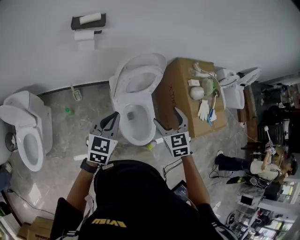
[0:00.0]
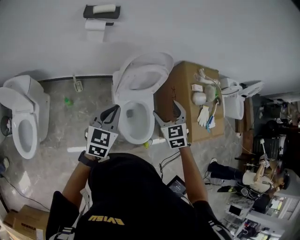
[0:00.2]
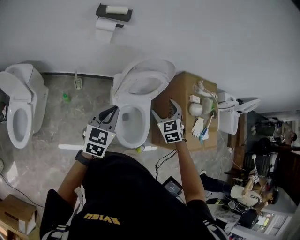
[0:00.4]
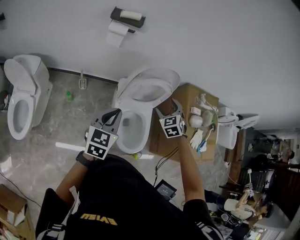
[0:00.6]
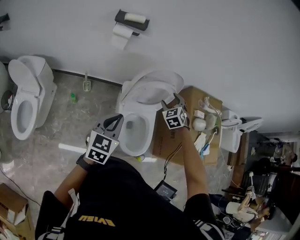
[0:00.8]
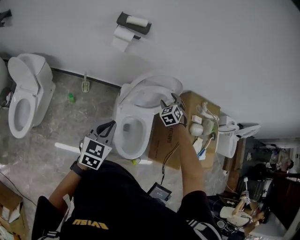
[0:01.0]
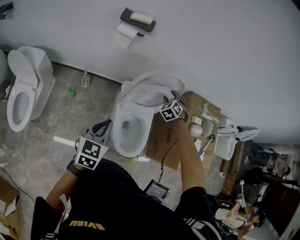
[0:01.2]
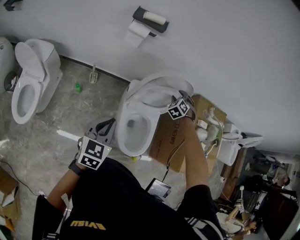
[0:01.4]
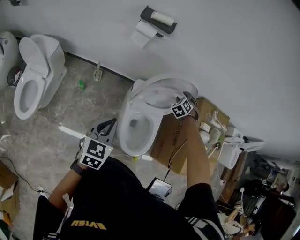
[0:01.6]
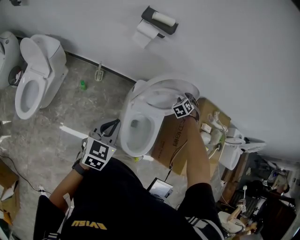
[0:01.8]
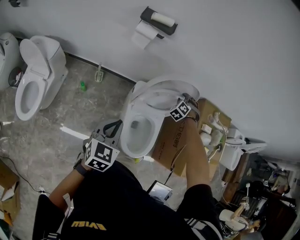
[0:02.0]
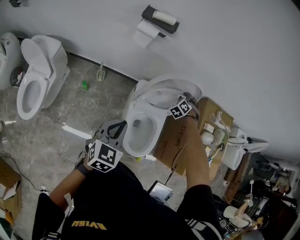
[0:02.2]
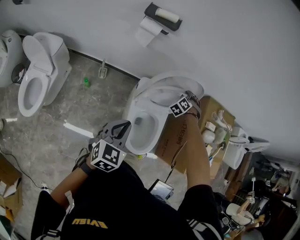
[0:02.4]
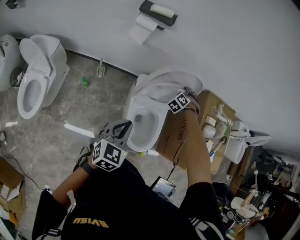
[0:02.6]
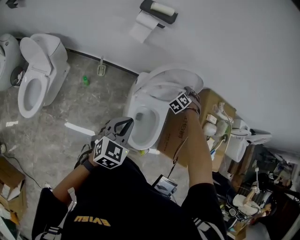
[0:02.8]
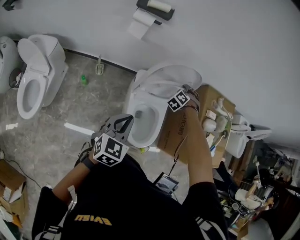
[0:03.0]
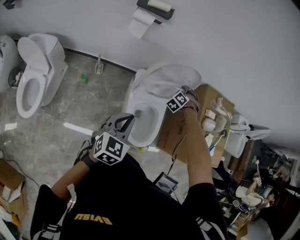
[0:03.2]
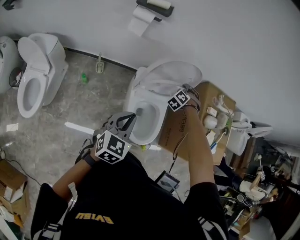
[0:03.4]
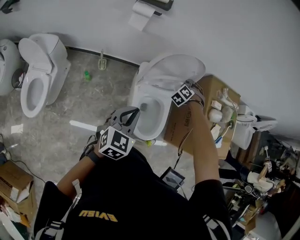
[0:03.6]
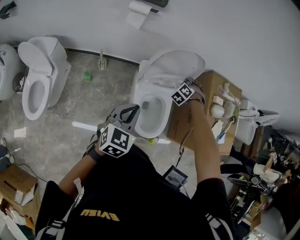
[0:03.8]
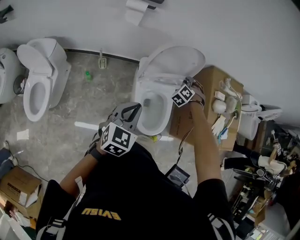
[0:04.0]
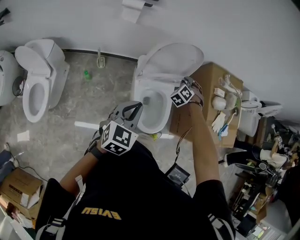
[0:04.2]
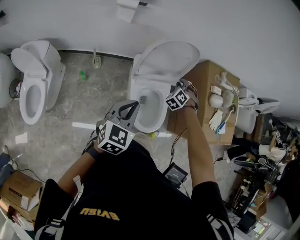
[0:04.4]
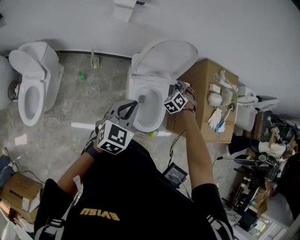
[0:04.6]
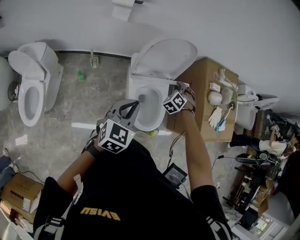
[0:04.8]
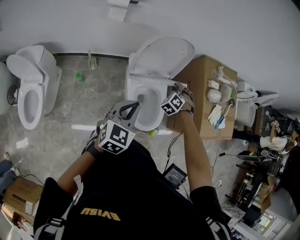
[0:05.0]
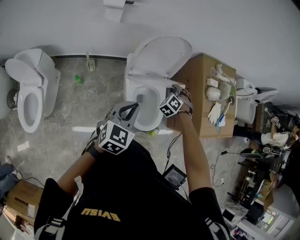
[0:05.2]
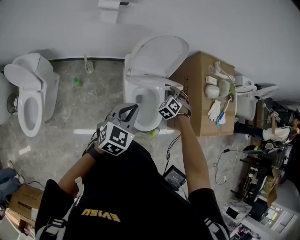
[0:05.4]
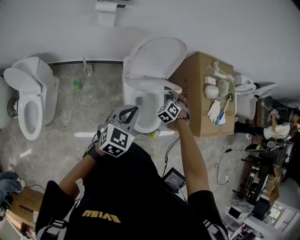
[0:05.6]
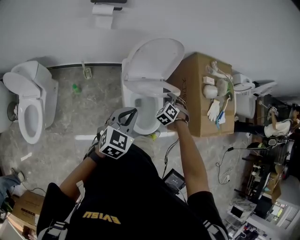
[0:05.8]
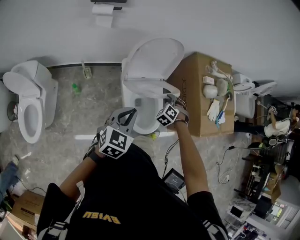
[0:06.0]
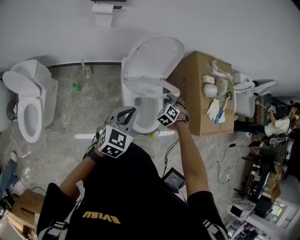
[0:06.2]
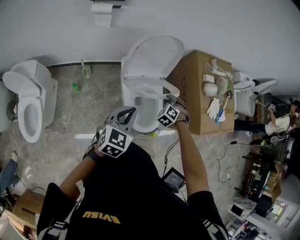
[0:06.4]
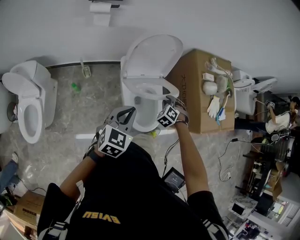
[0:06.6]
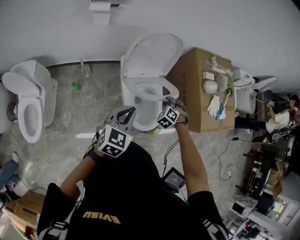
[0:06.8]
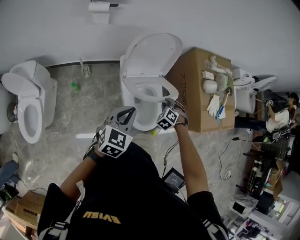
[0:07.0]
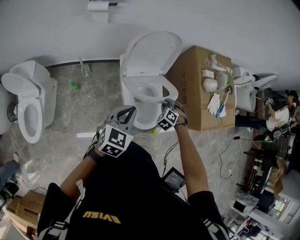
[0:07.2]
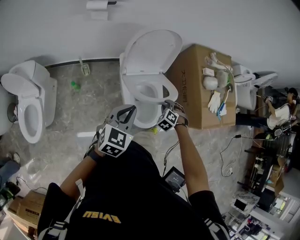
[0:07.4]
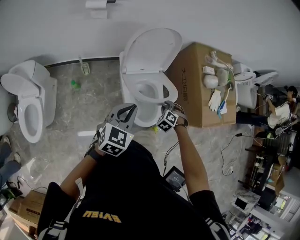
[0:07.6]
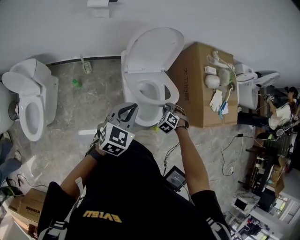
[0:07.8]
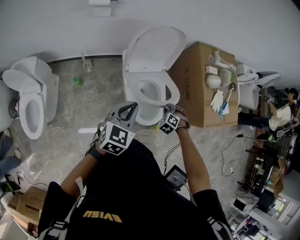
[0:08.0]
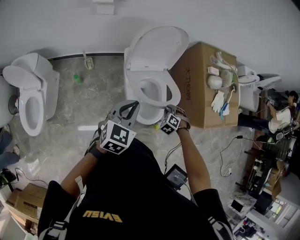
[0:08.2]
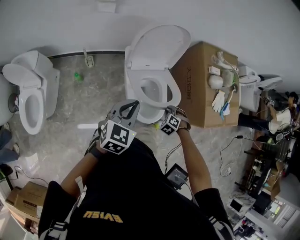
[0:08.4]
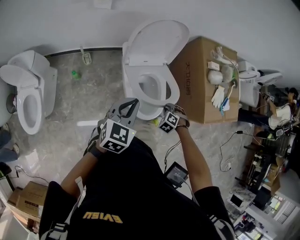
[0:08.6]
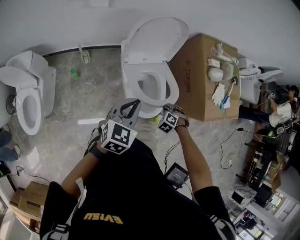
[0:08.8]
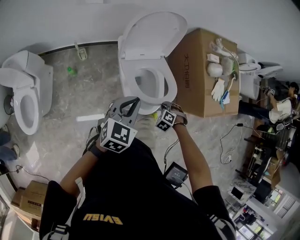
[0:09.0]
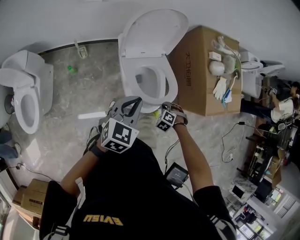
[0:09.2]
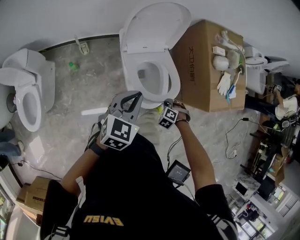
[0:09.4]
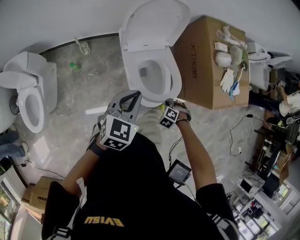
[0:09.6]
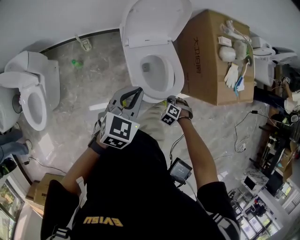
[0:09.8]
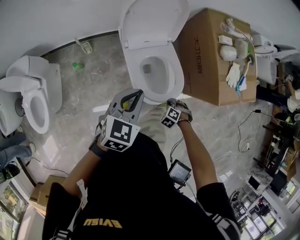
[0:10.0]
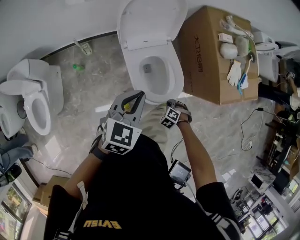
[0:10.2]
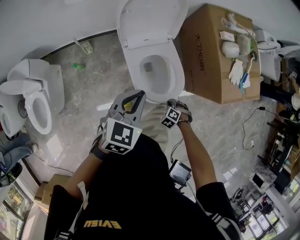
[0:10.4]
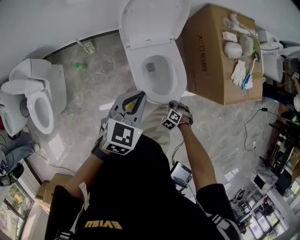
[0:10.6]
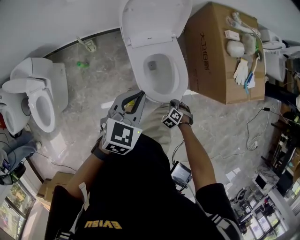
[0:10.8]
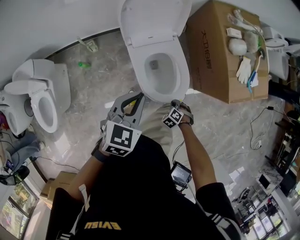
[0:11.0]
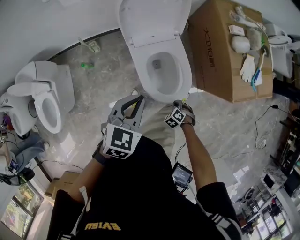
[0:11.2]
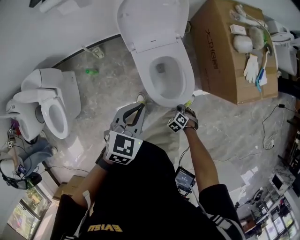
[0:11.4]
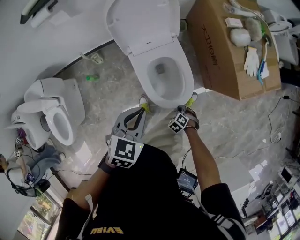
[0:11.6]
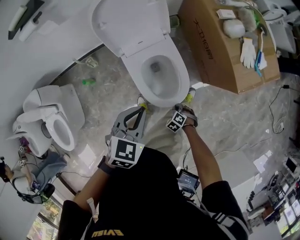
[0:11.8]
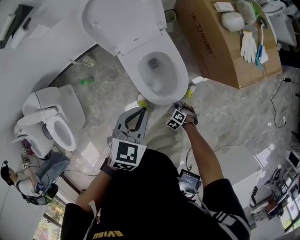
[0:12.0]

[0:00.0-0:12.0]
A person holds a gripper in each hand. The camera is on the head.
0:00.0 to 0:01.6: The right gripper heads forward and downward, covering about 35 cm, rotates around the line of its fingers by roughly 40 degrees, counterclockwise from behind, and closes, while the left gripper heads to the left, covering about 5 cm, and swivels approximately 20 degrees.
0:01.6 to 0:03.0: The left gripper goes approximately 5 cm to the right.
0:03.0 to 0:04.4: The right gripper travels backward and to the right by some 10 cm.
0:04.4 to 0:06.0: The right gripper is displaced backward and to the right by approximately 10 cm.
0:06.0 to 0:07.6: The right gripper travels backward, to the right and downward by some 10 cm.
0:07.6 to 0:09.0: The right gripper changes place by some 10 cm.
0:09.0 to 0:10.4: The right gripper goes about 10 cm downward.
0:10.4 to 0:12.0: The right gripper moves downward, about 10 cm, while the left gripper changes place by roughly 10 cm.

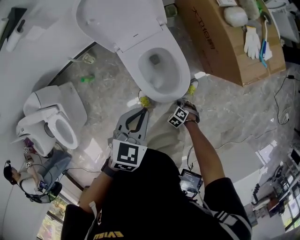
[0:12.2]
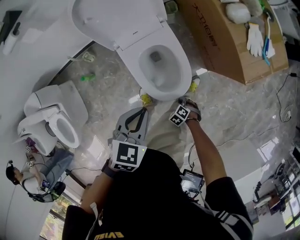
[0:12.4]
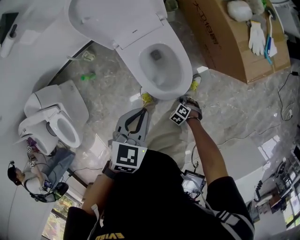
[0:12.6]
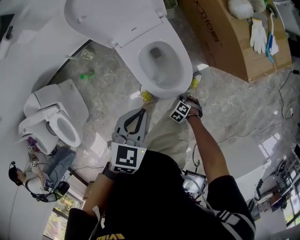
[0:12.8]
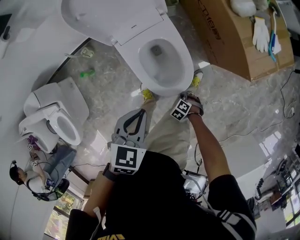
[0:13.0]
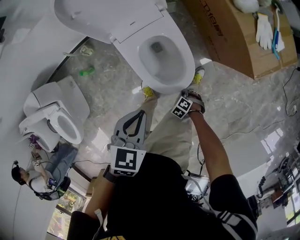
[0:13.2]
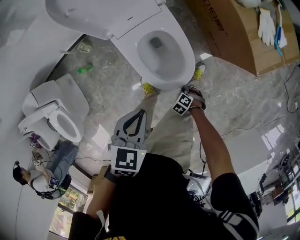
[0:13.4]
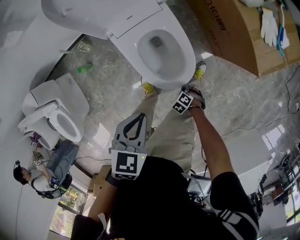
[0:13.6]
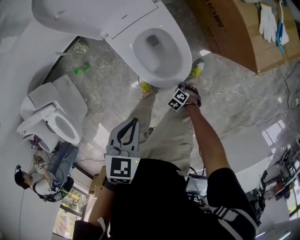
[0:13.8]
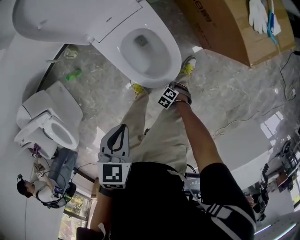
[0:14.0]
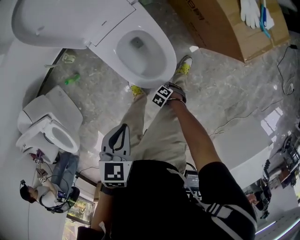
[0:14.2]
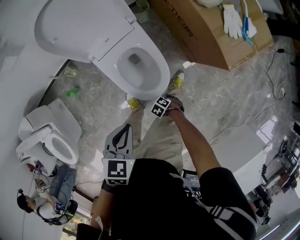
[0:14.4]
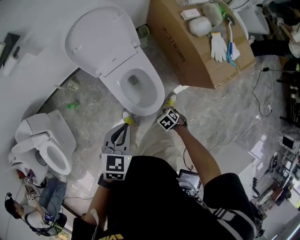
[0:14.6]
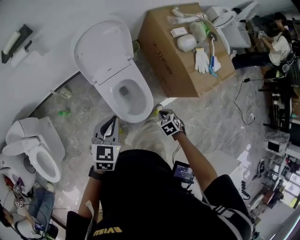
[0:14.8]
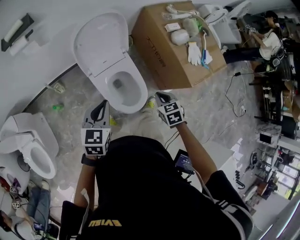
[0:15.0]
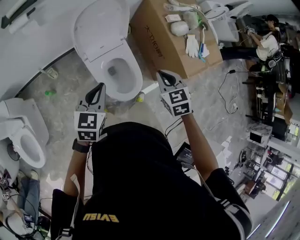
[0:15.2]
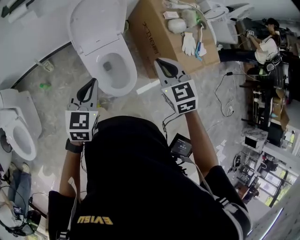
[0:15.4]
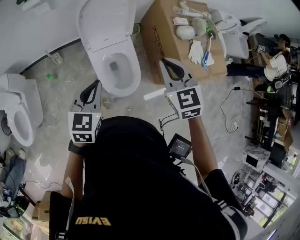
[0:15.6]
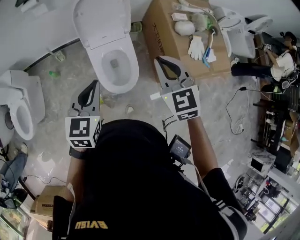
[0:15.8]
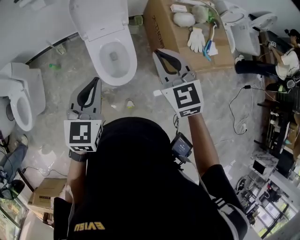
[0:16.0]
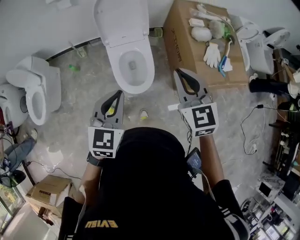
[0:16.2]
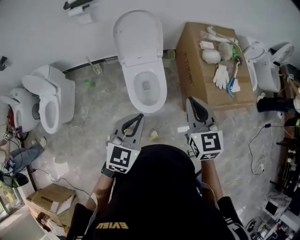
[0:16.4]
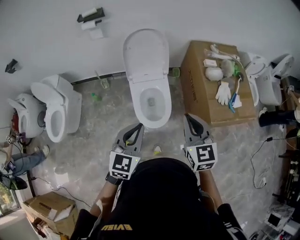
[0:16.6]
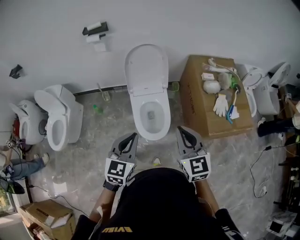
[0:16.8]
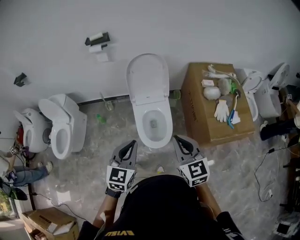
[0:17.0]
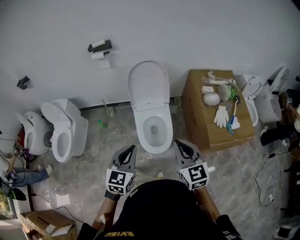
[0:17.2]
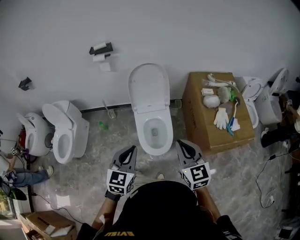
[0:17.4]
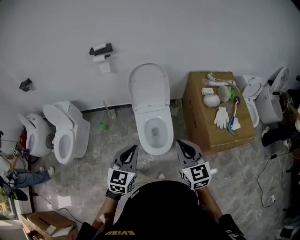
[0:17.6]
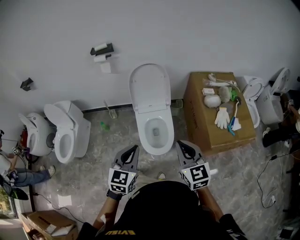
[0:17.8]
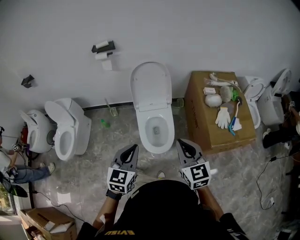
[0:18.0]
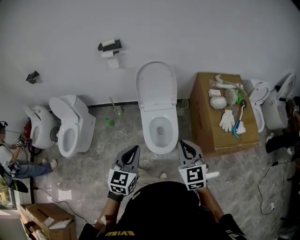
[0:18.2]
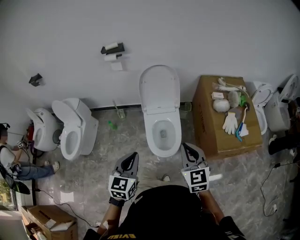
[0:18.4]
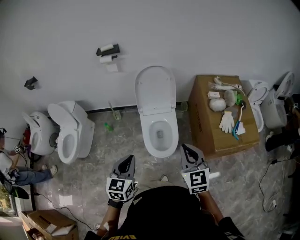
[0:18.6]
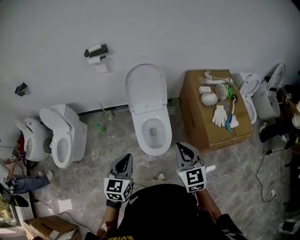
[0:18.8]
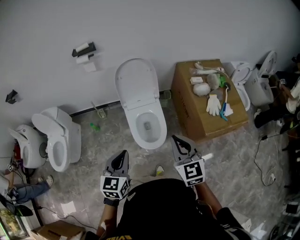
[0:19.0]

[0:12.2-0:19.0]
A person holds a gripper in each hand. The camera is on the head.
0:12.2 to 0:13.6: The two grippers go about 5 cm downward.
0:13.6 to 0:15.0: The right gripper moves upward, roughly 40 cm, and tips its fingers upward by about 30 degrees; the left gripper shifts about 15 cm upward, and changes its angle by roughly 30 degrees.
0:15.0 to 0:16.2: The right gripper moves upward, some 25 cm, and tilts its fingers some 40 degrees upward; the left gripper heads backward, to the right and upward, covering approximately 25 cm.
0:16.2 to 0:17.6: The right gripper moves backward, roughly 5 cm; the left gripper ends up roughly 5 cm from where it was.
0:17.6 to 0:19.0: The grippers stay close to where they were, moving slightly.

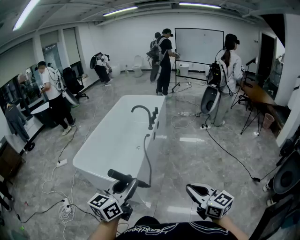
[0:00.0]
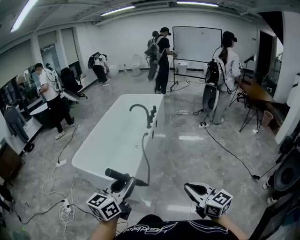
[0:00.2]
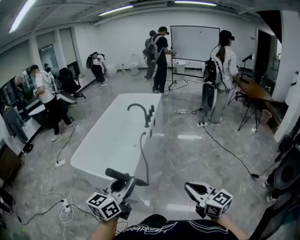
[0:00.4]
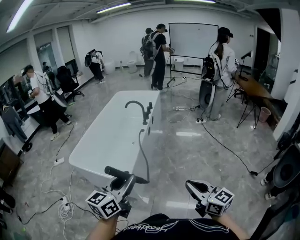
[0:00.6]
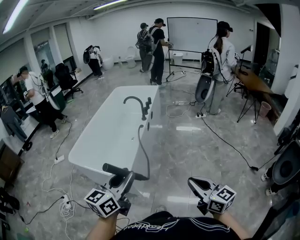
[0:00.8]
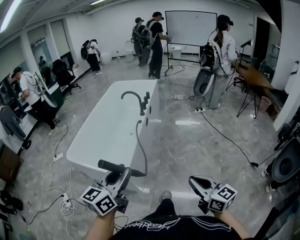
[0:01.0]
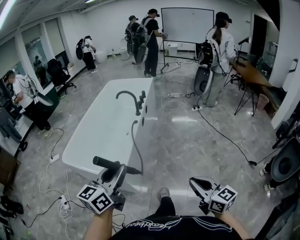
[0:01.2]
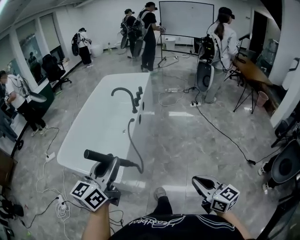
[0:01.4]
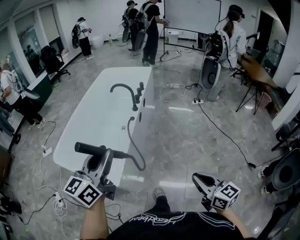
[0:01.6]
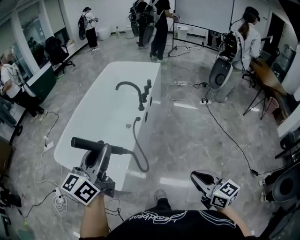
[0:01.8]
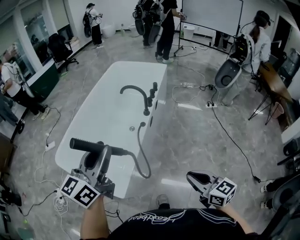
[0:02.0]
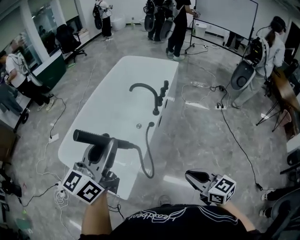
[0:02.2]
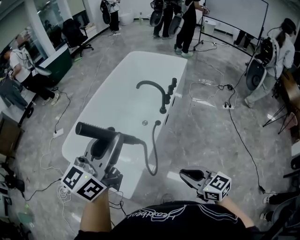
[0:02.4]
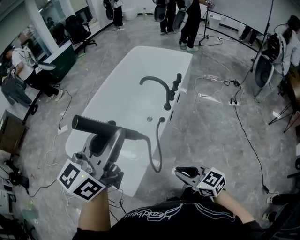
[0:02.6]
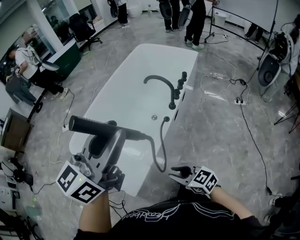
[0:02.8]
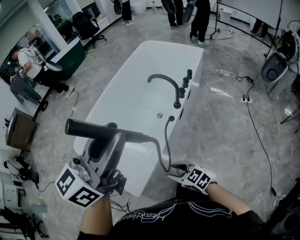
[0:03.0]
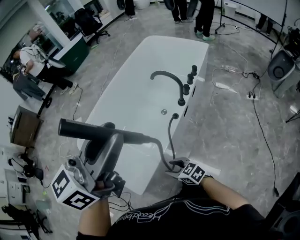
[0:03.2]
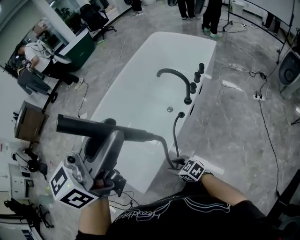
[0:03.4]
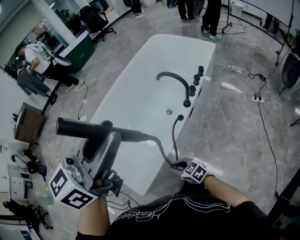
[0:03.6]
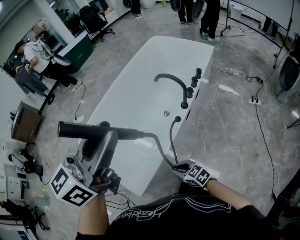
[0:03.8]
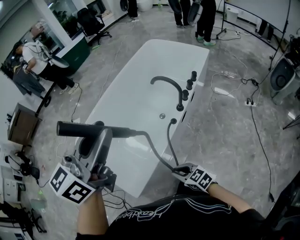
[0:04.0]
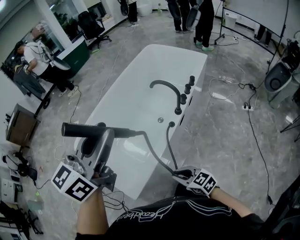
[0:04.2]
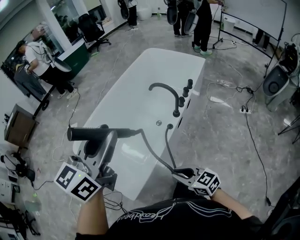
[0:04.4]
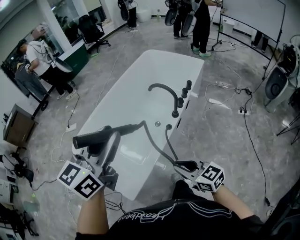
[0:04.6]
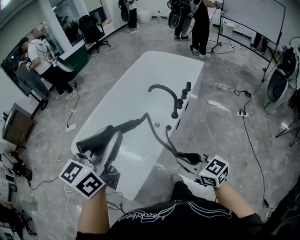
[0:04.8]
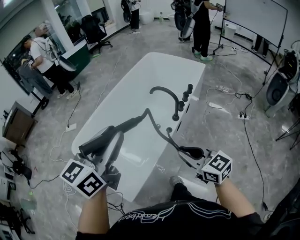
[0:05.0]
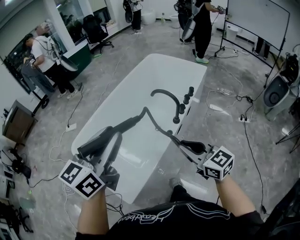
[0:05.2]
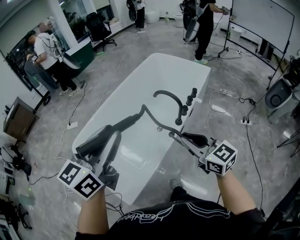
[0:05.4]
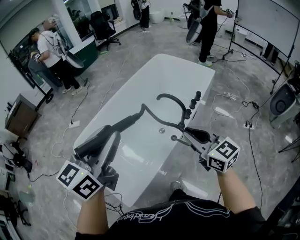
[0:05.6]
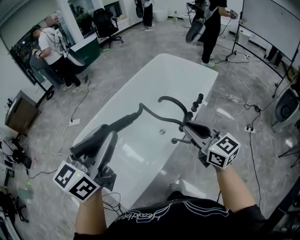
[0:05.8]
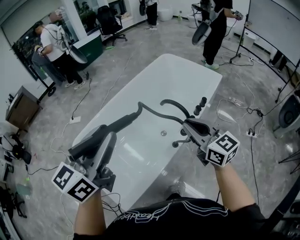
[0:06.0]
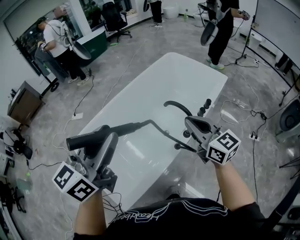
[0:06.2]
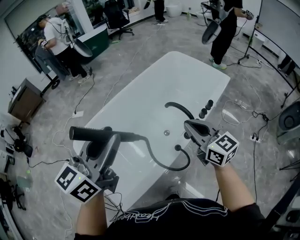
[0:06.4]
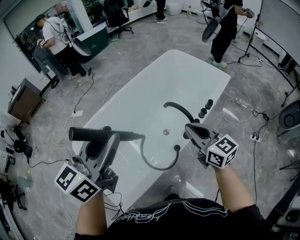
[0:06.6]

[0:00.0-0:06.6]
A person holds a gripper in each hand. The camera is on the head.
0:00.0 to 0:01.6: The left gripper is displaced forward by some 20 cm. Meanwhile the right gripper travels forward, to the right and downward by about 15 cm.
0:01.6 to 0:03.2: The right gripper changes place by about 40 cm, rotates about 60 degrees, and opens up; the left gripper shifts by roughly 25 cm.
0:03.2 to 0:05.0: The right gripper heads upward and to the right, covering approximately 25 cm, swivels approximately 30 degrees, and closes; the left gripper moves some 5 cm.
0:05.0 to 0:06.6: The left gripper heads forward, covering some 10 cm, while the right gripper moves forward, approximately 25 cm.
